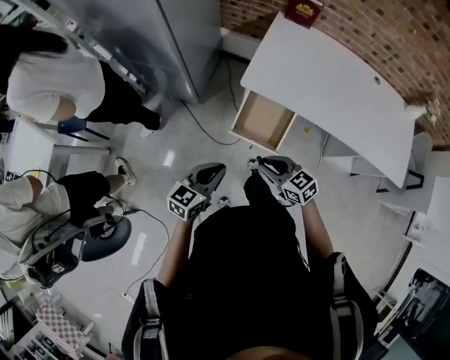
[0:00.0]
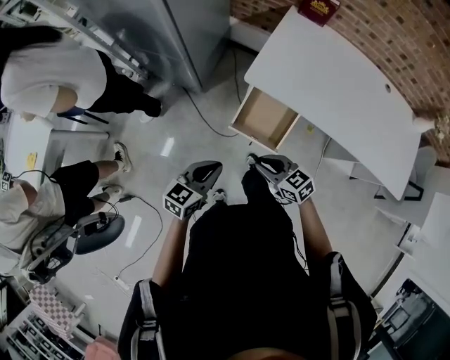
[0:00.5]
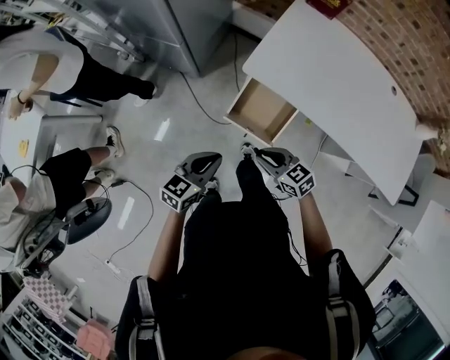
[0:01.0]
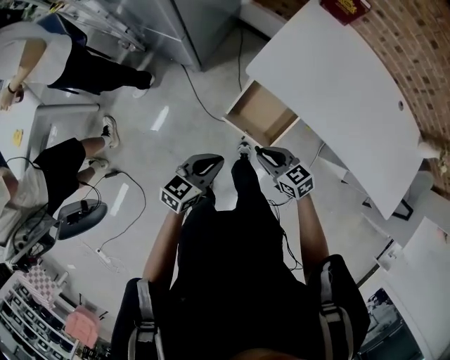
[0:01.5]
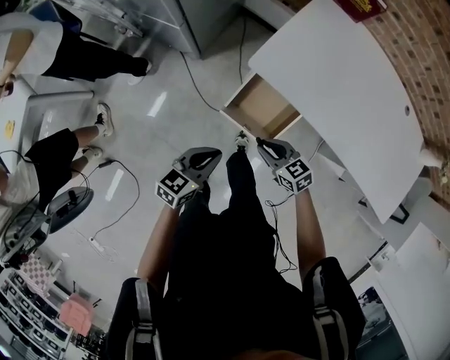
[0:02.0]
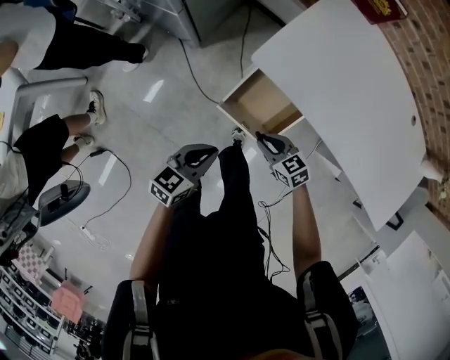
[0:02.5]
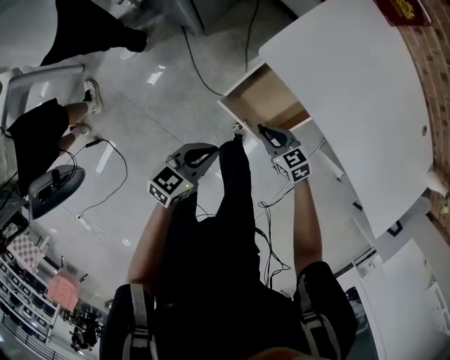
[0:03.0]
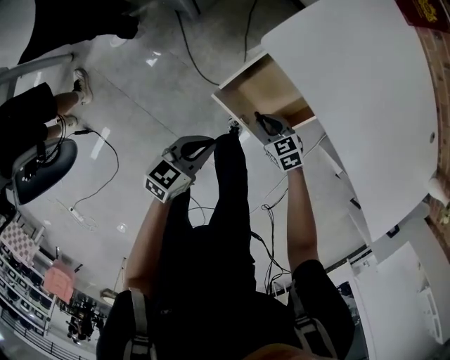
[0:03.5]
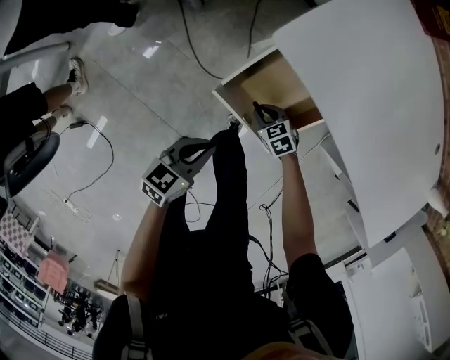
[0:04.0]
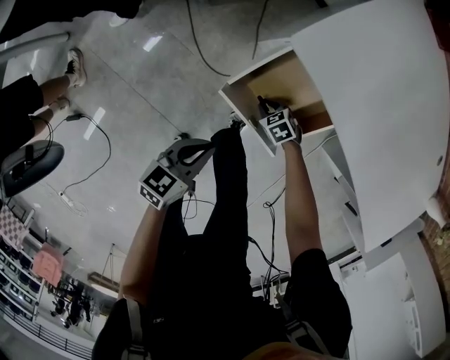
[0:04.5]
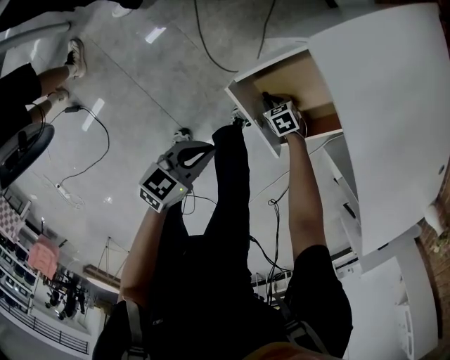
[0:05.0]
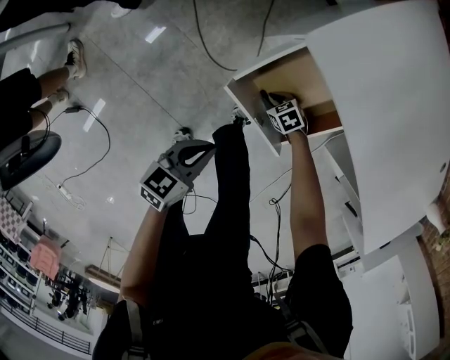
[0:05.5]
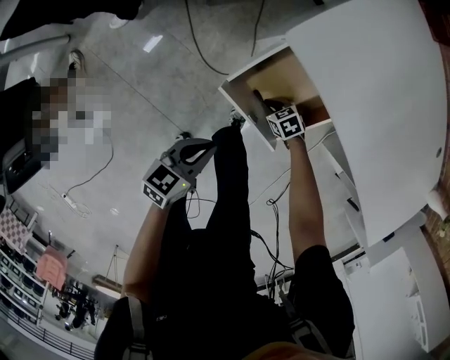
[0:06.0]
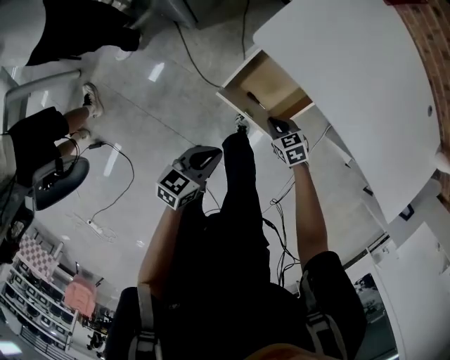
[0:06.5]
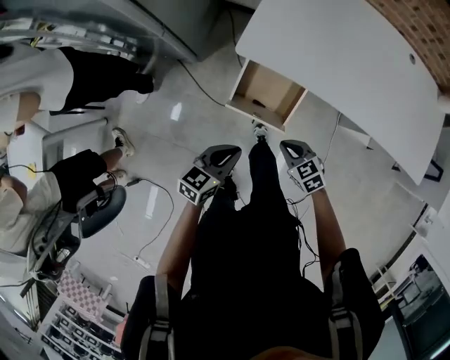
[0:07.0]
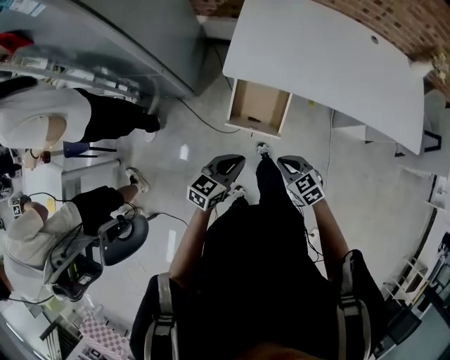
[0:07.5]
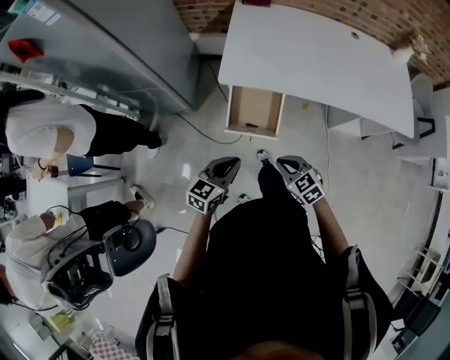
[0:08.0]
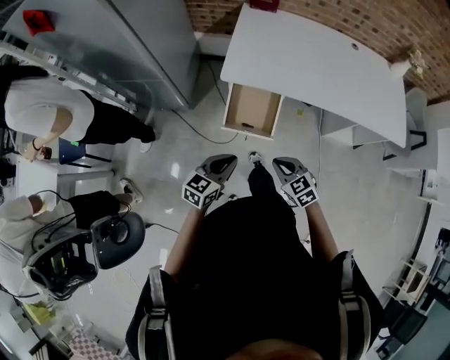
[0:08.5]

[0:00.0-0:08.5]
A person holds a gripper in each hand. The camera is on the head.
0:00.0 to 0:02.0: The two grippers go approximately 15 cm downward, forward and to the right.
0:02.0 to 0:04.0: The right gripper shifts approximately 30 cm downward, and swivels about 20 degrees; the left gripper travels downward by approximately 20 cm.
0:04.0 to 0:06.5: The right gripper is displaced upward by about 10 cm. Meanwhile the left gripper goes roughly 5 cm upward.
0:06.5 to 0:08.5: The left gripper goes roughly 15 cm upward, and turns by some 30 degrees. The right gripper goes roughly 35 cm upward and backward, and turns by approximately 30 degrees.

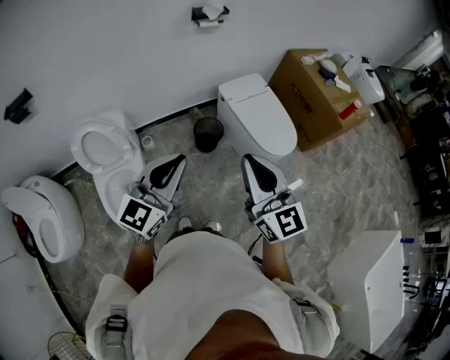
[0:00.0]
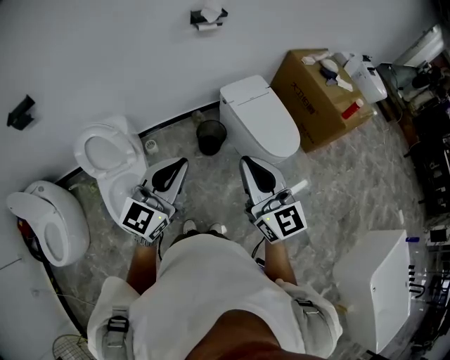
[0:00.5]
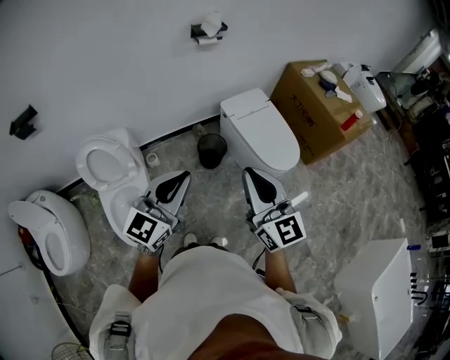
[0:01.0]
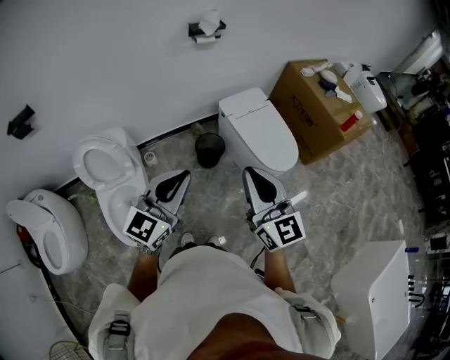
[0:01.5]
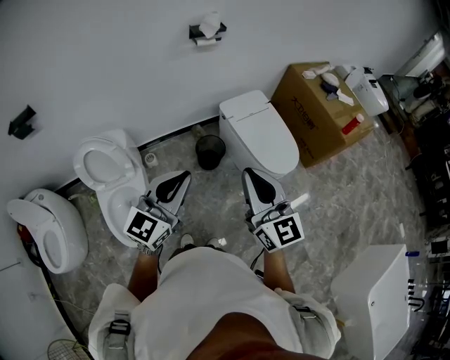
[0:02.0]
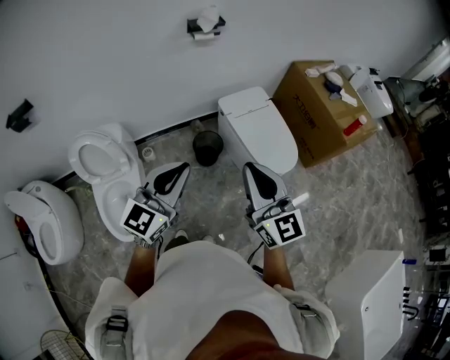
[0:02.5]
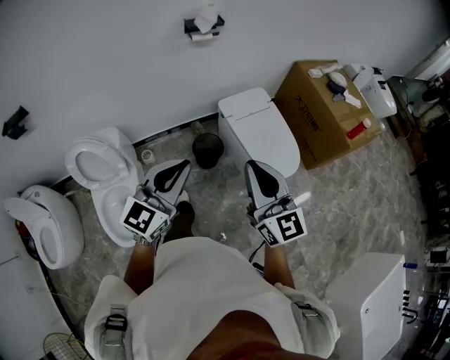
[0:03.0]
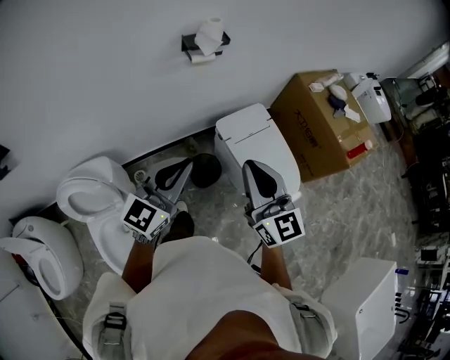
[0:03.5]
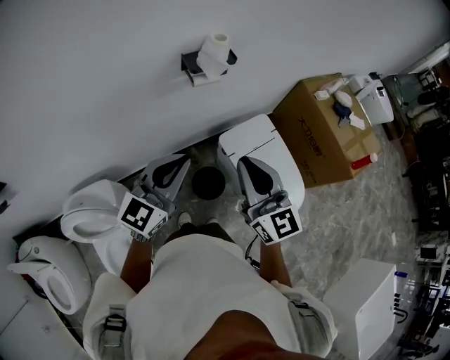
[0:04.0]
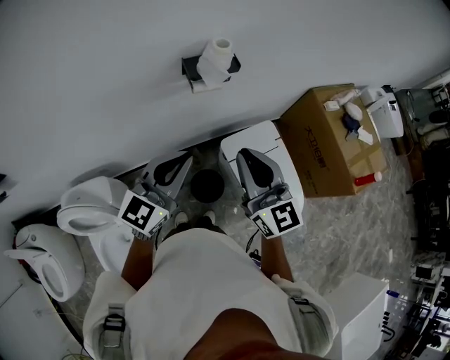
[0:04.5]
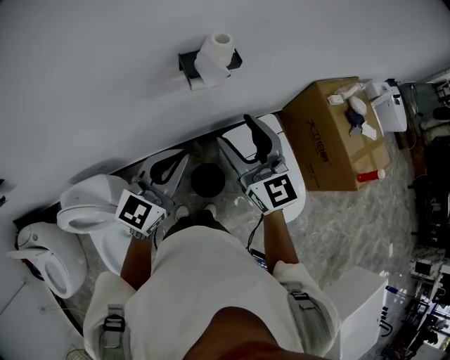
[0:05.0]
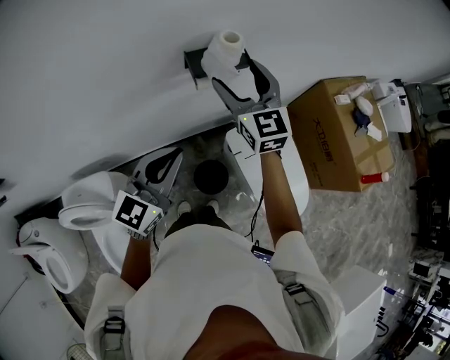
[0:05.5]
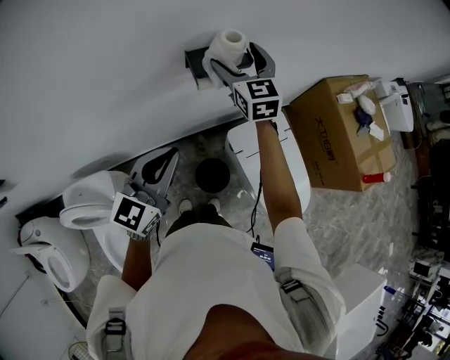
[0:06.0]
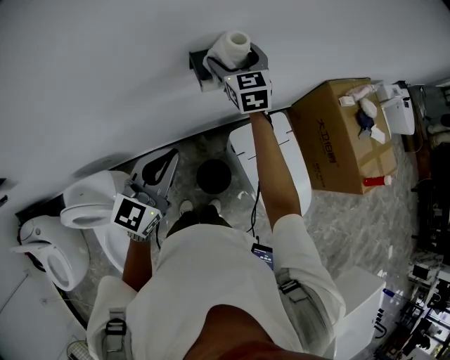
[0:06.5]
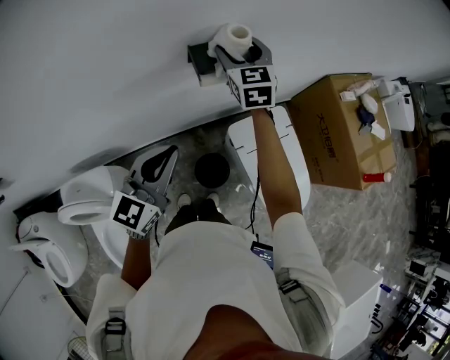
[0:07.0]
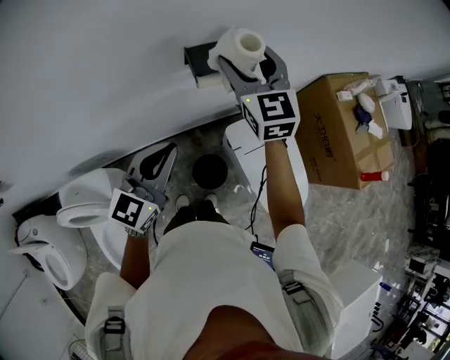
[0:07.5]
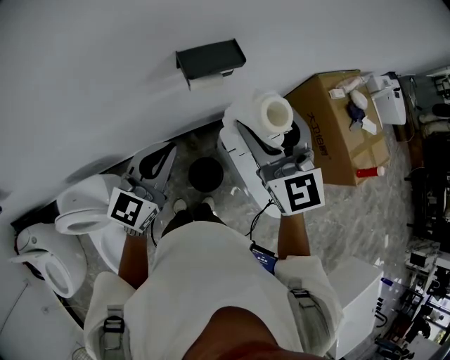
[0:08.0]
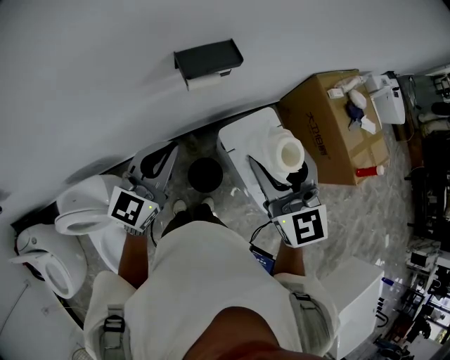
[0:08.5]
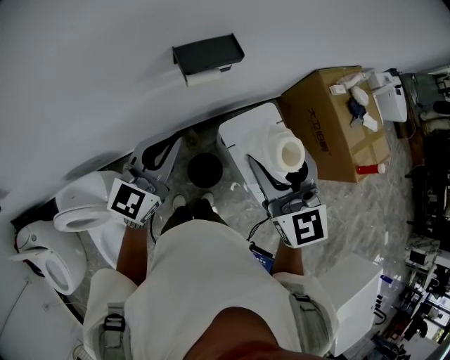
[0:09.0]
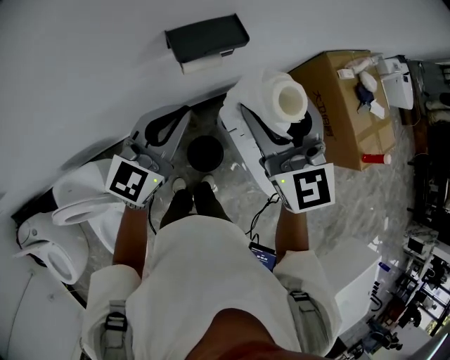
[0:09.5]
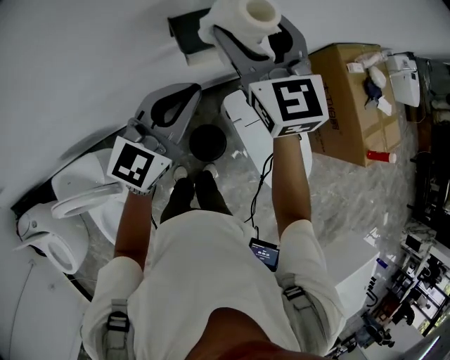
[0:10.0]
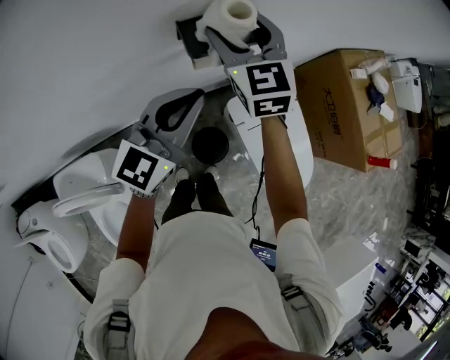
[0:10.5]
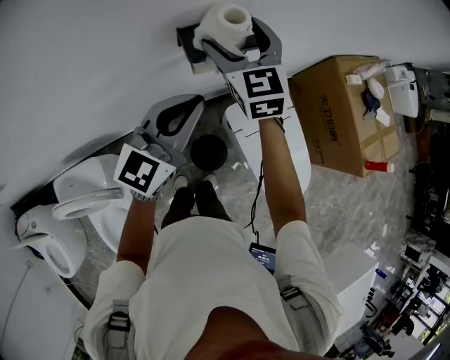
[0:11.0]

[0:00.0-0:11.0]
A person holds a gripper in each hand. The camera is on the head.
0:00.0 to 0:02.0: The right gripper moves some 5 cm.
0:02.0 to 0:03.5: Both grippers move forward, approximately 30 cm.
0:03.5 to 0:05.5: The left gripper moves forward, about 25 cm, while the right gripper goes roughly 40 cm forward, and opens its fingers.
0:07.5 to 0:09.0: The right gripper heads backward and to the right, covering about 20 cm.
0:09.0 to 0:11.0: The left gripper is displaced forward by approximately 10 cm; the right gripper travels forward and to the left by approximately 30 cm.

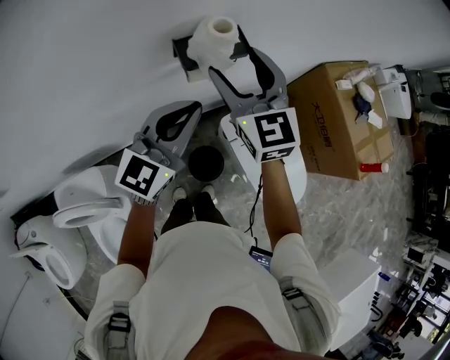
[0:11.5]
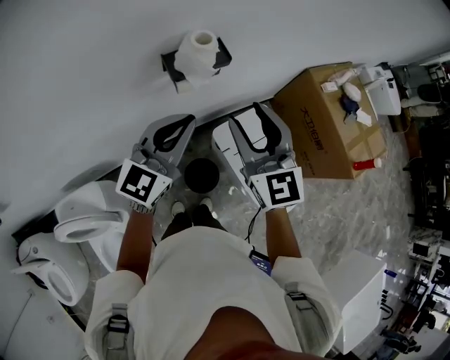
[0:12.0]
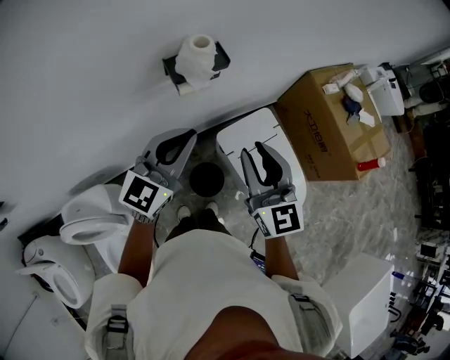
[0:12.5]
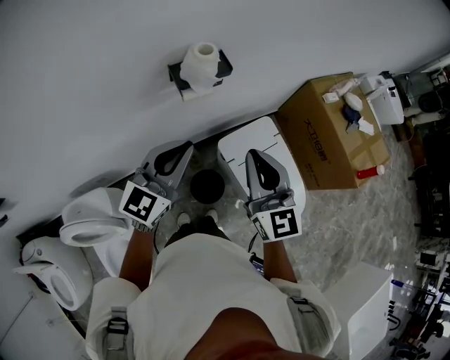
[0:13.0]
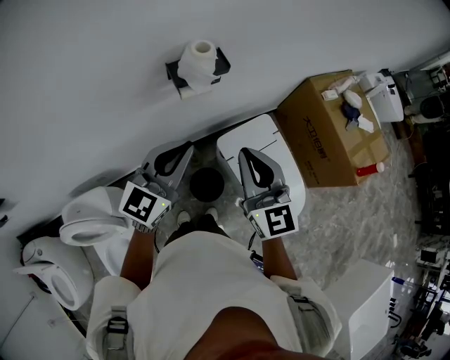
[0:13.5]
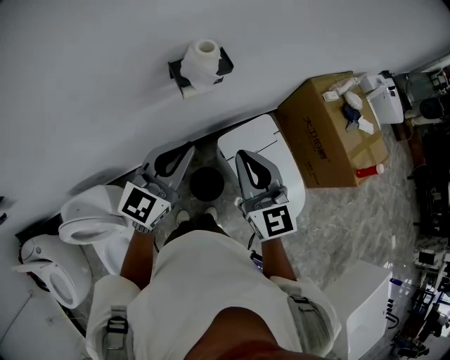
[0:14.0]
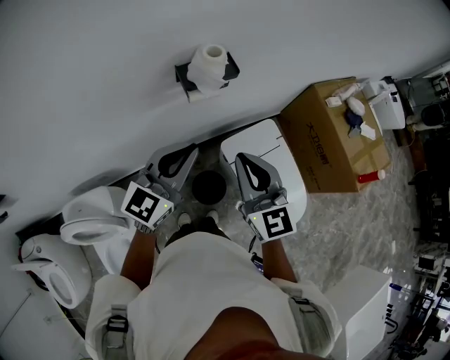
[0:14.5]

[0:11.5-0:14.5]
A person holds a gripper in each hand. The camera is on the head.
0:11.5 to 0:13.0: The right gripper is displaced backward and to the right by roughly 20 cm, and closes up; the left gripper is displaced backward by approximately 10 cm.
0:13.0 to 0:14.5: The grippers stay close to where they were, moving slightly.

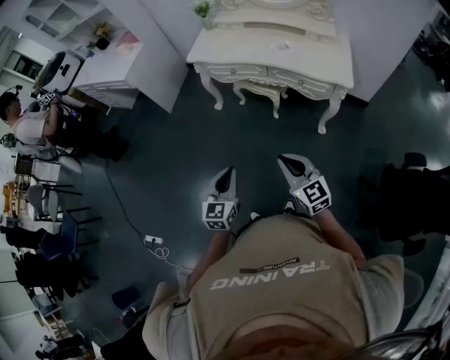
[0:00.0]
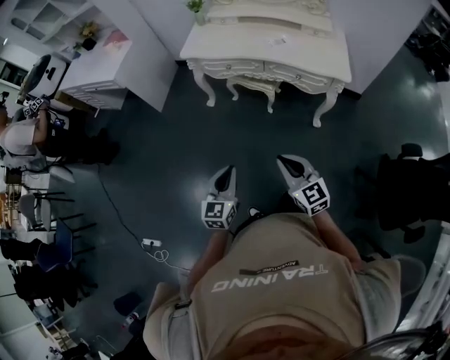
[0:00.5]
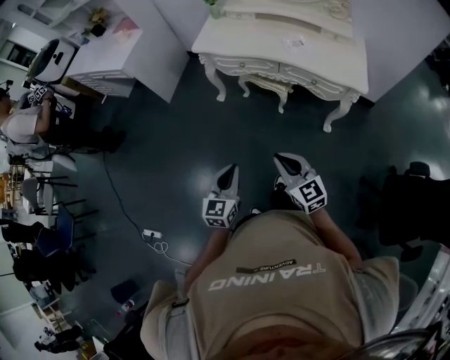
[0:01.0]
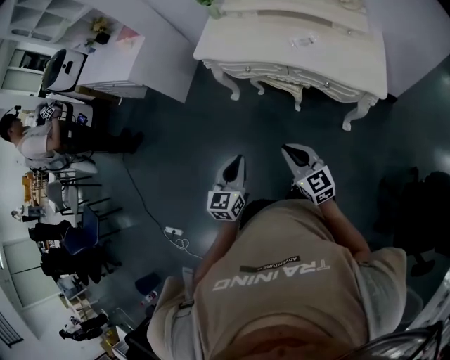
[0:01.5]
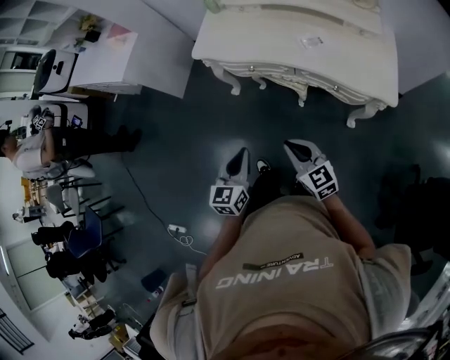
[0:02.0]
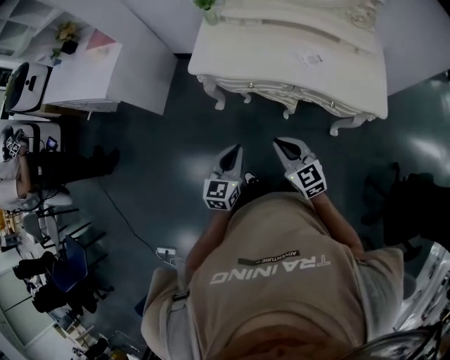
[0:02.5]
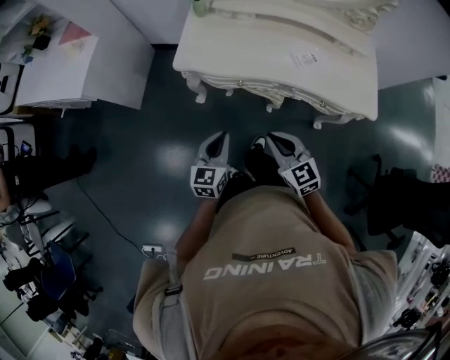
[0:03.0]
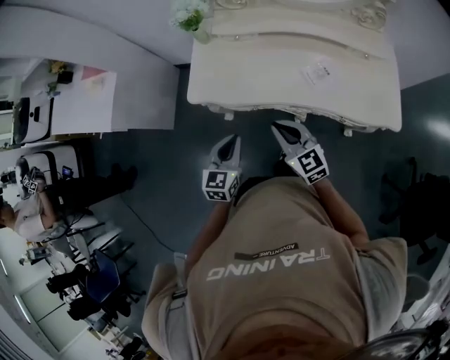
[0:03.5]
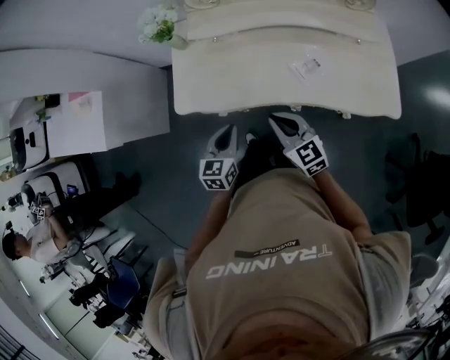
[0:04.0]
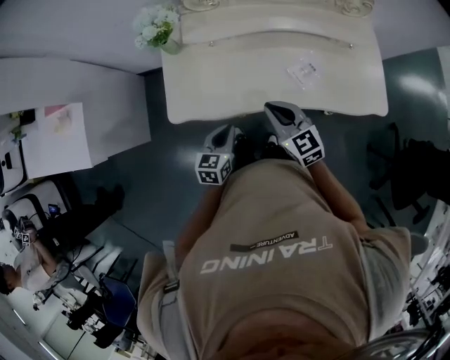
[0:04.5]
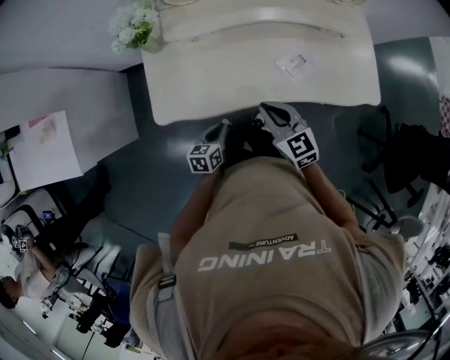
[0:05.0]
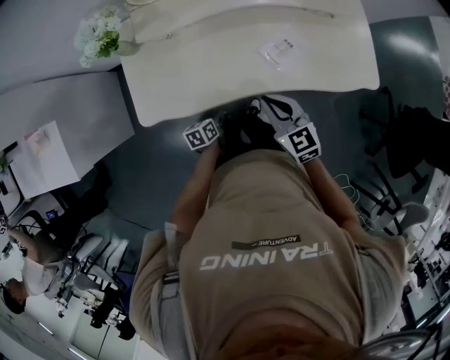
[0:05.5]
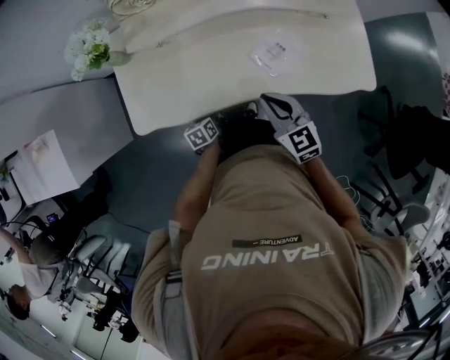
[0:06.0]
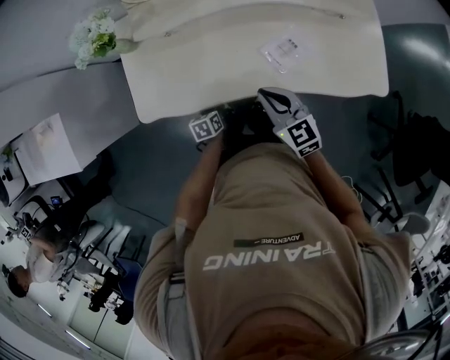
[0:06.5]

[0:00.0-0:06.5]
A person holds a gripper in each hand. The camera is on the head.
0:00.0 to 0:02.0: Both grippers move forward, approximately 30 cm.
0:02.0 to 0:04.5: The two grippers travel together, some 40 cm. The right gripper swivels approximately 20 degrees, while the left gripper turns by some 30 degrees.
0:04.5 to 0:06.5: The right gripper heads to the right and downward, covering approximately 10 cm, while the left gripper is displaced downward by some 20 cm, rotates about 30 degrees, and opens up.
